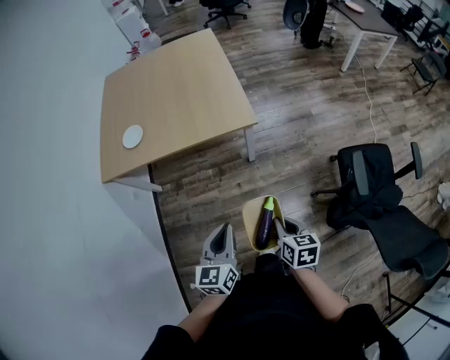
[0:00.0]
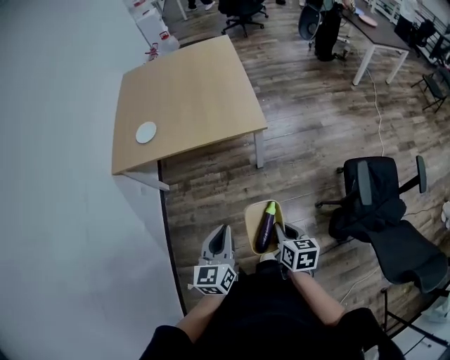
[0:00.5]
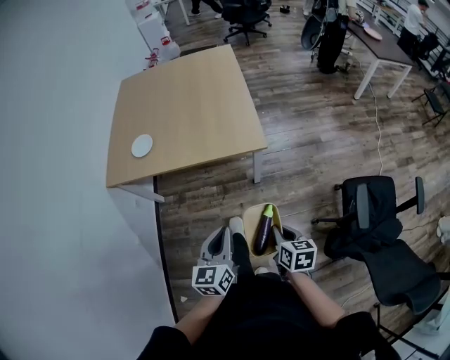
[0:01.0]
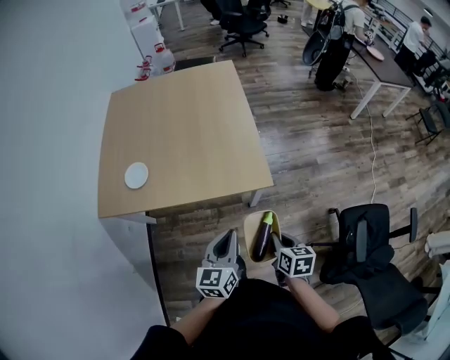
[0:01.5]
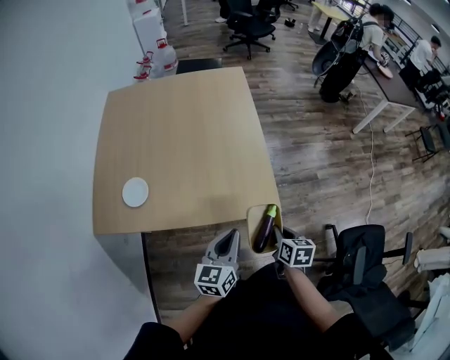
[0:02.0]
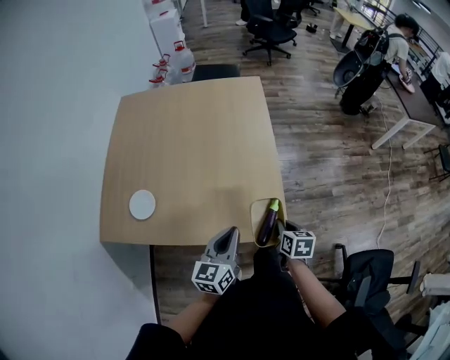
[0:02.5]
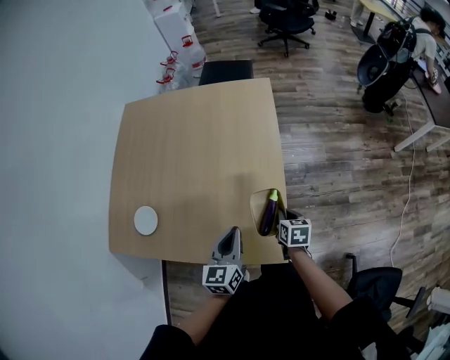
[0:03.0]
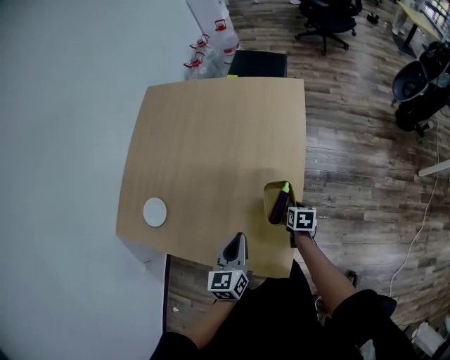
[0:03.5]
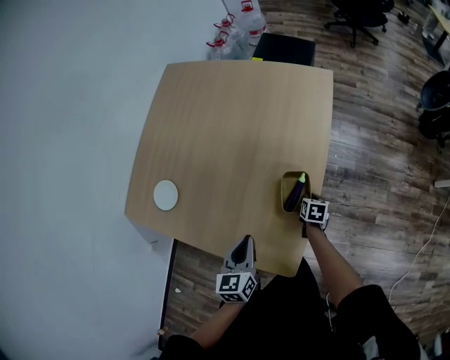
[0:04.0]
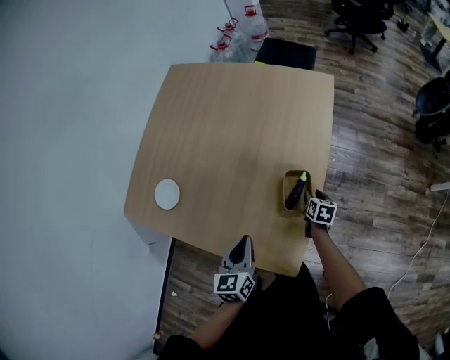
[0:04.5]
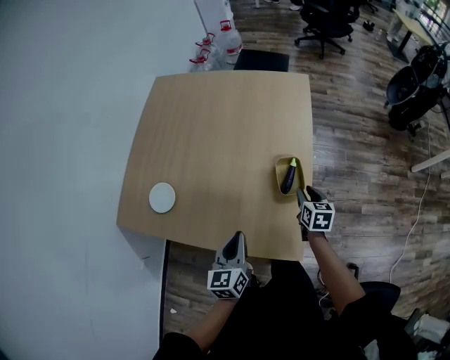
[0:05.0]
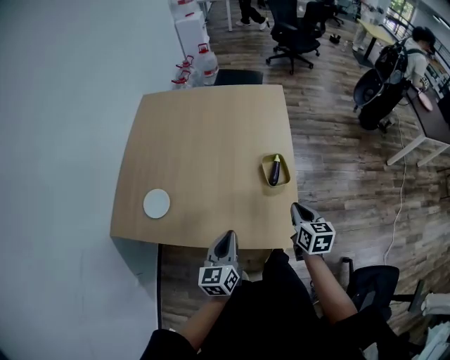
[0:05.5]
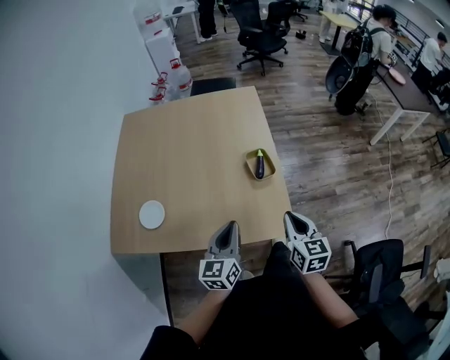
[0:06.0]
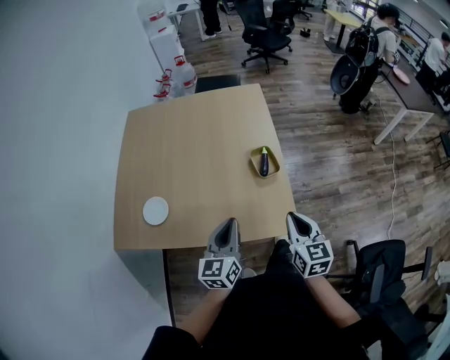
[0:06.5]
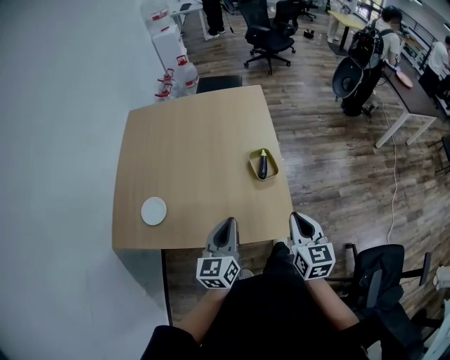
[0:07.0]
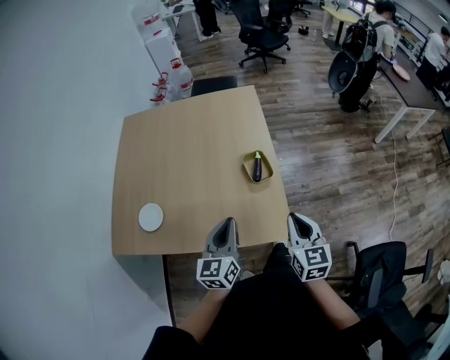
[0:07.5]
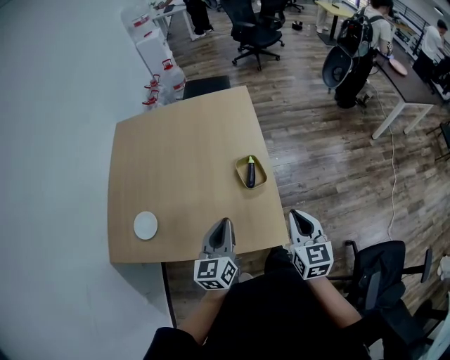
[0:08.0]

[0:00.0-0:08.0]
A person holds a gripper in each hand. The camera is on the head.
0:00.0 to 0:02.0: Both grippers travel together forward, roughly 40 cm.
0:02.0 to 0:04.0: The right gripper ends up approximately 50 cm from where it was, and swivels about 20 degrees, while the left gripper shifts by about 25 cm, and rotates approximately 40 degrees.
0:04.0 to 0:06.0: The left gripper goes roughly 15 cm backward, upward and to the left, and turns by some 30 degrees. Meanwhile the right gripper is displaced upward and backward by some 40 cm, angles its fingers upward, by about 40 degrees, and opens, then closes once more.
0:06.0 to 0:08.0: The left gripper is displaced forward by about 5 cm. The right gripper goes approximately 5 cm to the right.

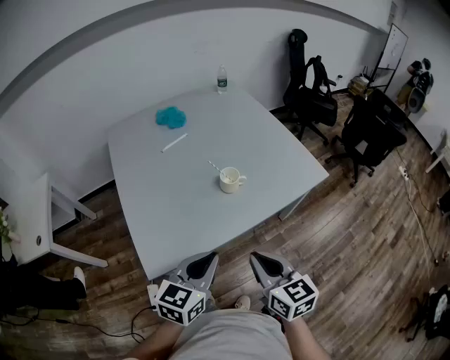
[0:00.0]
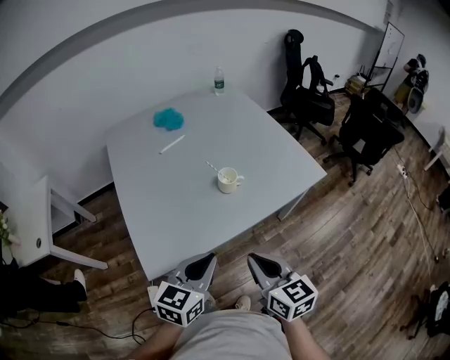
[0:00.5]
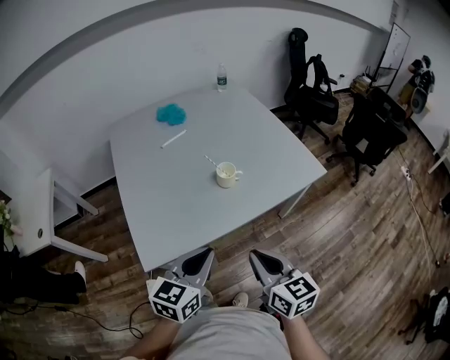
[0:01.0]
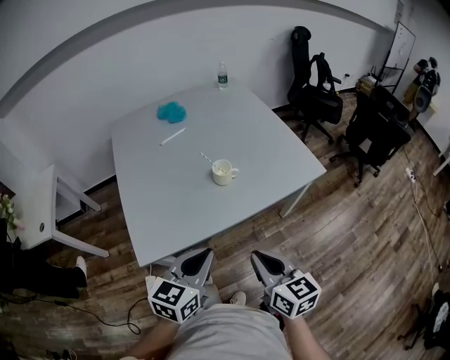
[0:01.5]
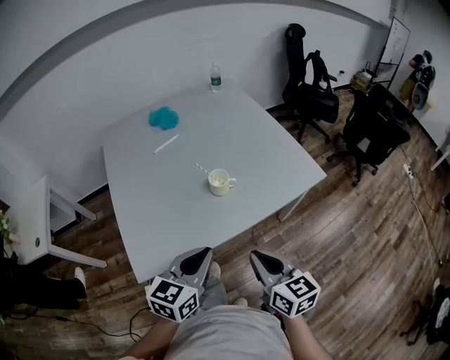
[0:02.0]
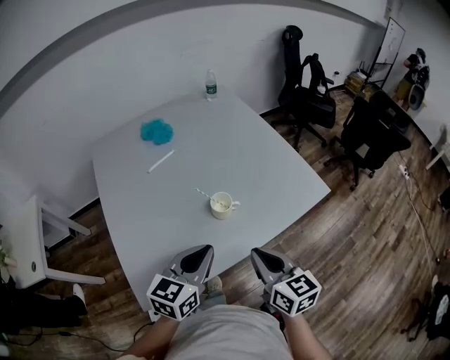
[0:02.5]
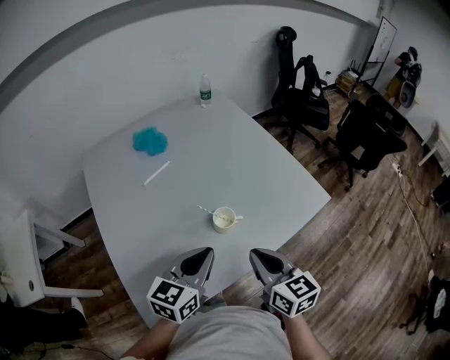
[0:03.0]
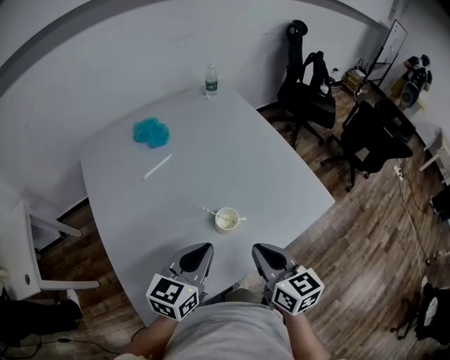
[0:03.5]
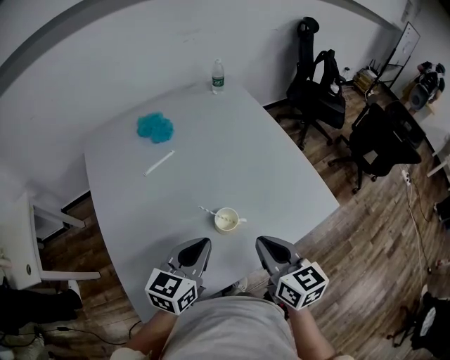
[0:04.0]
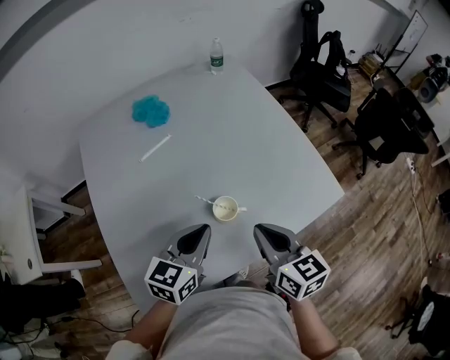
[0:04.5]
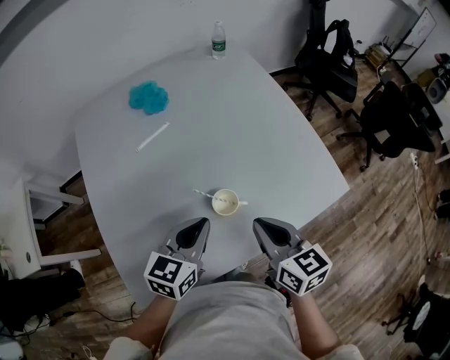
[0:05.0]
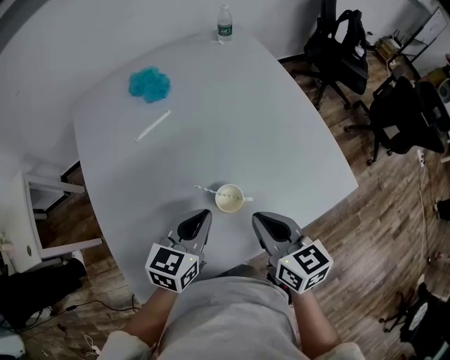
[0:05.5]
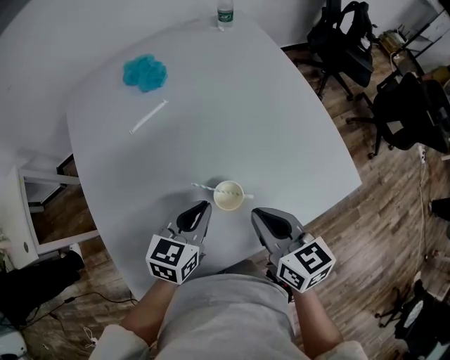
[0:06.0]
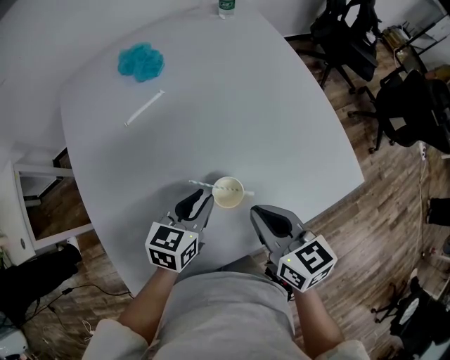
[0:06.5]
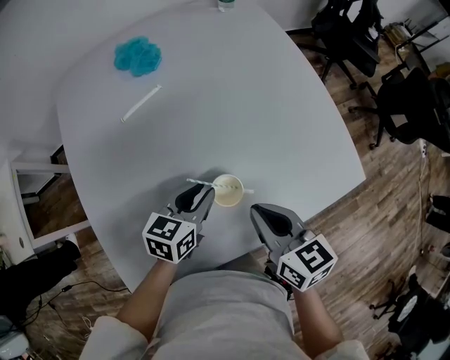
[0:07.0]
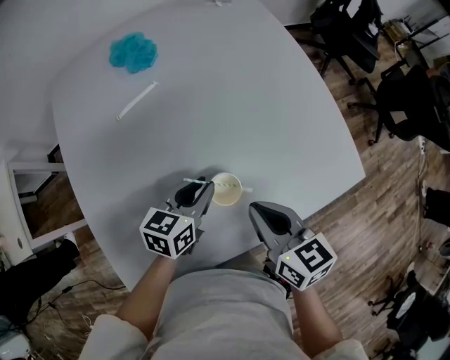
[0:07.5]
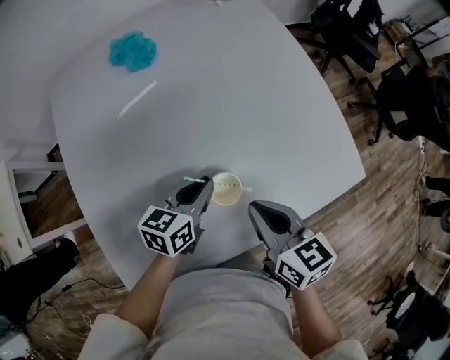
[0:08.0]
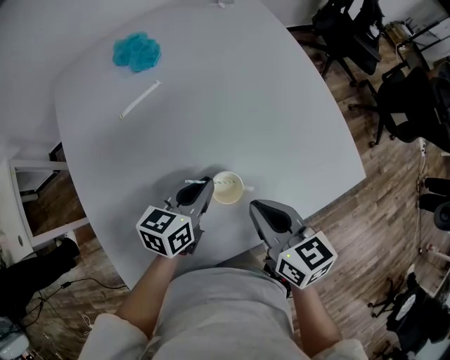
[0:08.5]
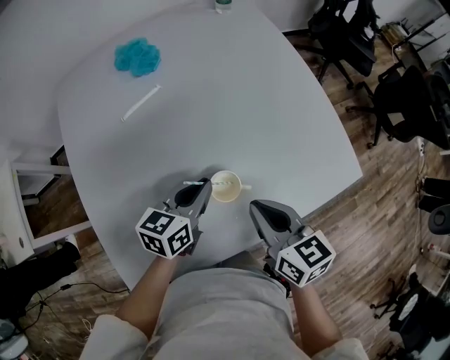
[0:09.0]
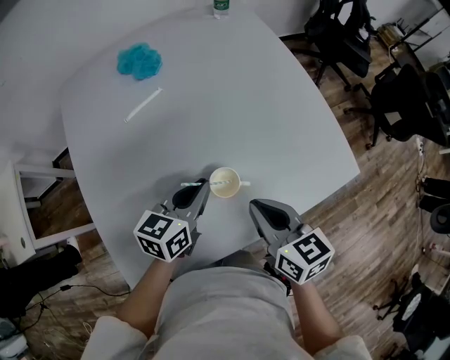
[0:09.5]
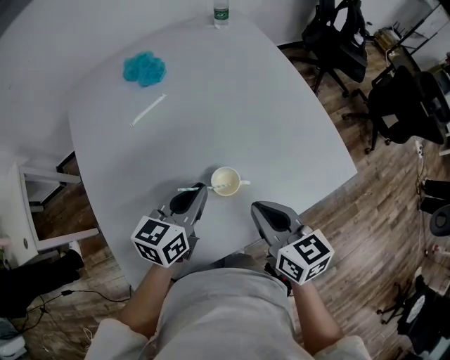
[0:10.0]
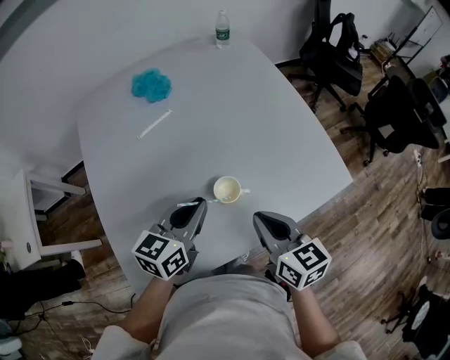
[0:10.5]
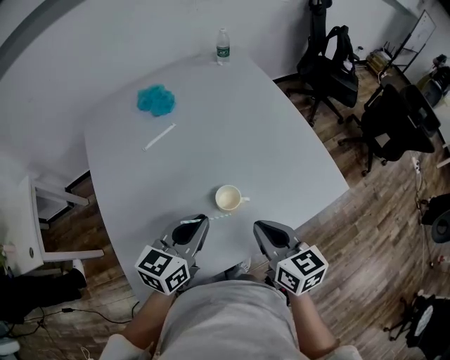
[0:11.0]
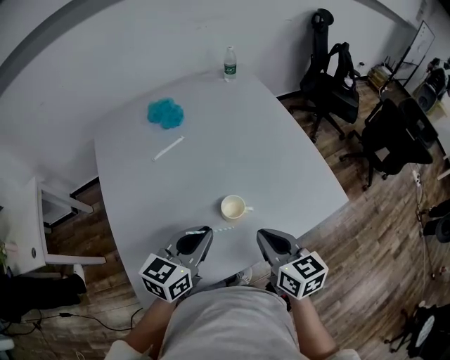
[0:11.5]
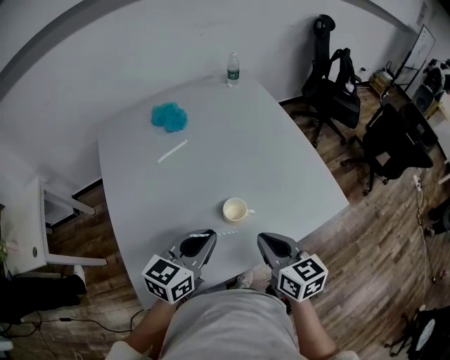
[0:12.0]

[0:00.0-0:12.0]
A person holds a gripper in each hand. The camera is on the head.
0:00.0 to 0:02.0: The right gripper moves to the right, about 5 cm. Meanwhile the left gripper changes place by roughly 5 cm.
0:02.0 to 0:04.0: Both grippers travel together forward, some 20 cm.
0:04.0 to 0:06.0: The two grippers go approximately 10 cm downward and forward.
0:06.0 to 0:08.0: The left gripper ends up approximately 5 cm from where it was.
0:08.0 to 0:10.0: The left gripper heads upward, covering some 10 cm.
0:10.0 to 0:12.0: The right gripper ends up roughly 5 cm from where it was, while the left gripper shifts some 10 cm backward and upward.

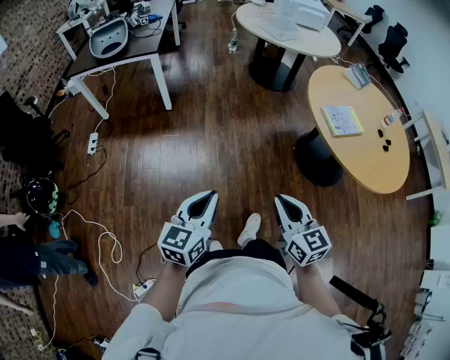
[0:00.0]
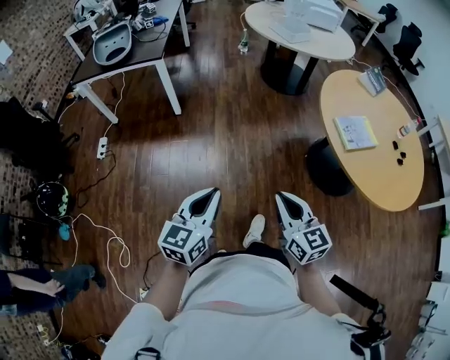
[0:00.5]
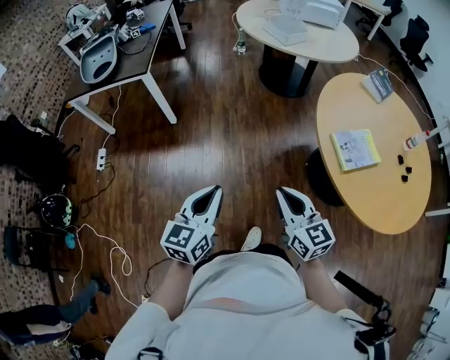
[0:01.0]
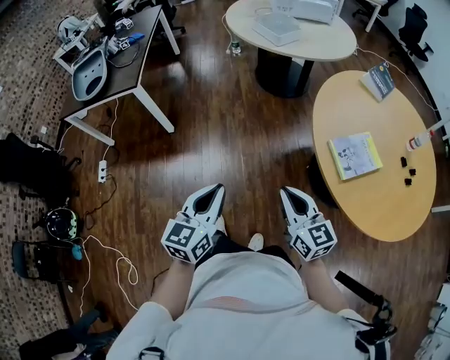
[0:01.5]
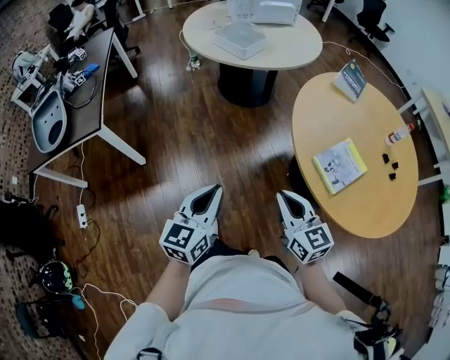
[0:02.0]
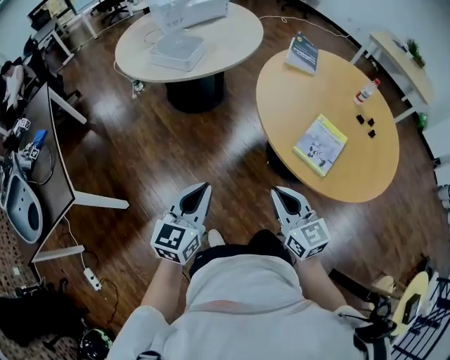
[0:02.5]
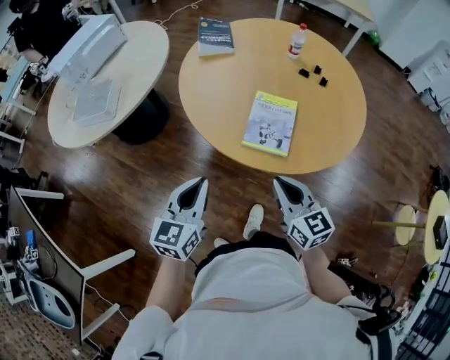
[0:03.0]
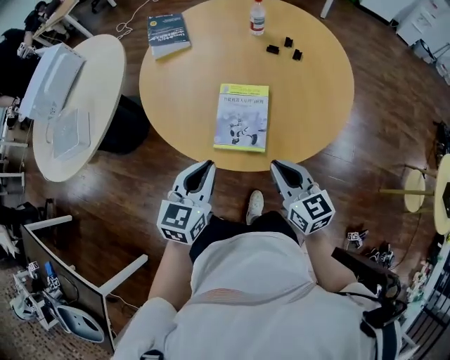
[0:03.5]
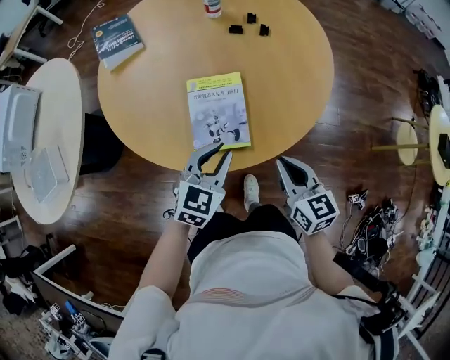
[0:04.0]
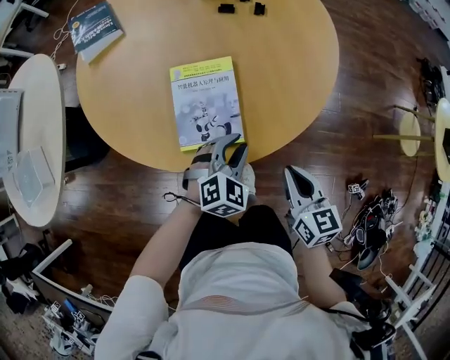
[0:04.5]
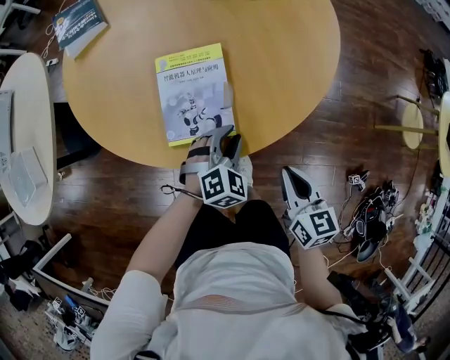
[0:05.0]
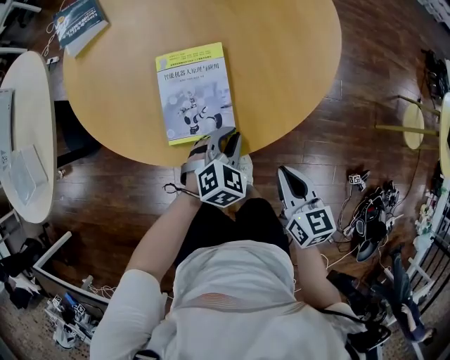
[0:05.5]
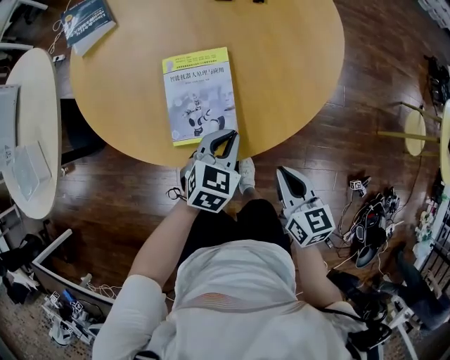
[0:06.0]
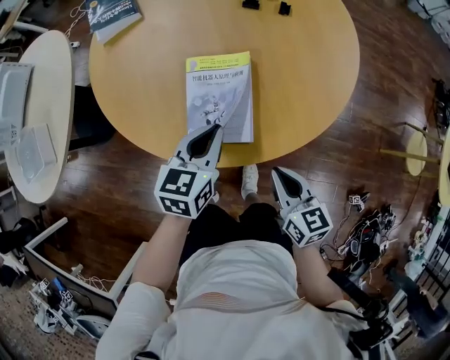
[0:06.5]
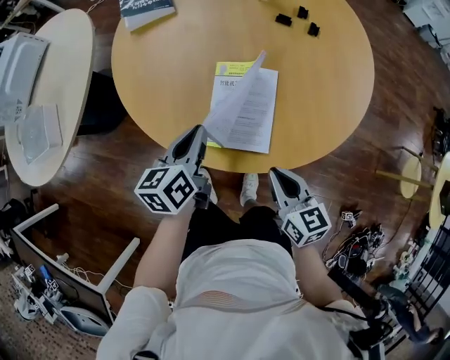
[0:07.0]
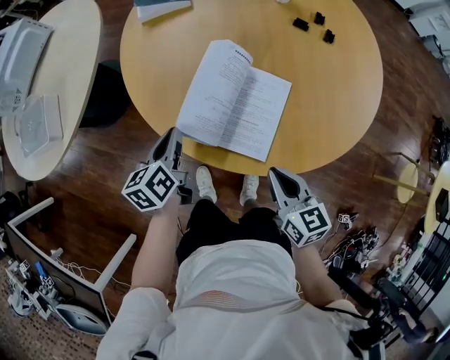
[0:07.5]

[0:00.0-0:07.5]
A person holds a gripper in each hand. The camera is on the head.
0:00.0 to 0:02.0: The pair of grippers is taken forward, about 50 cm.
0:02.0 to 0:04.0: The right gripper shifts by approximately 35 cm, and rotates some 70 degrees. Meanwhile the left gripper changes place by some 50 cm, and changes its angle by roughly 80 degrees.
0:04.0 to 0:05.5: The left gripper shifts about 15 cm downward and to the right, and rotates roughly 30 degrees. The right gripper goes about 10 cm downward and to the right.
0:05.5 to 0:07.5: The right gripper changes place by roughly 15 cm. The left gripper moves approximately 35 cm, and twists approximately 80 degrees counterclockwise, seen from behind.
